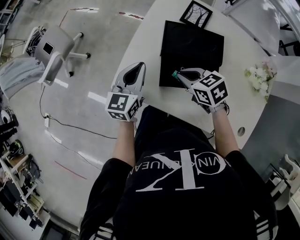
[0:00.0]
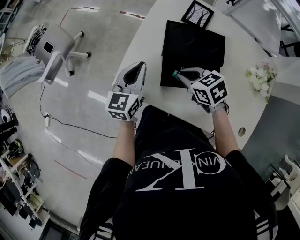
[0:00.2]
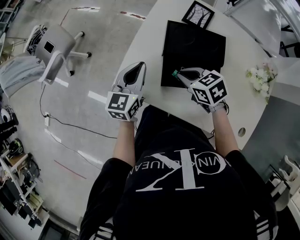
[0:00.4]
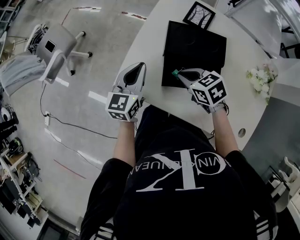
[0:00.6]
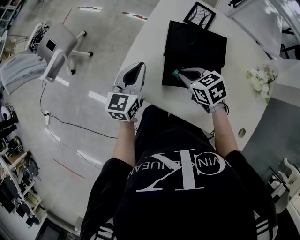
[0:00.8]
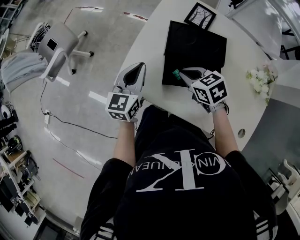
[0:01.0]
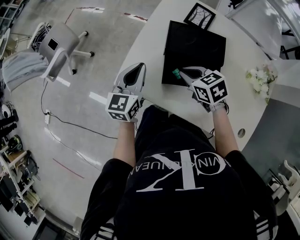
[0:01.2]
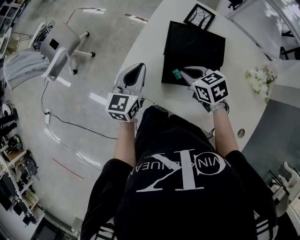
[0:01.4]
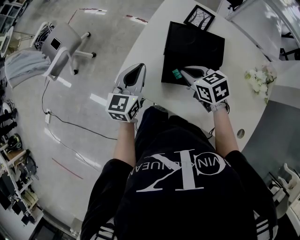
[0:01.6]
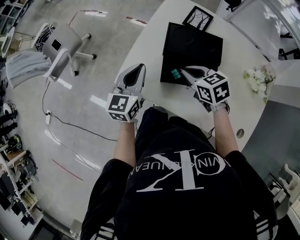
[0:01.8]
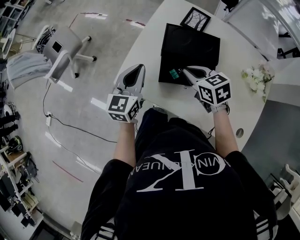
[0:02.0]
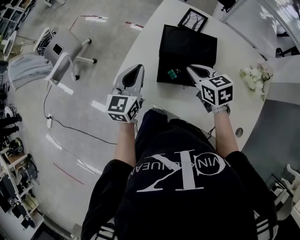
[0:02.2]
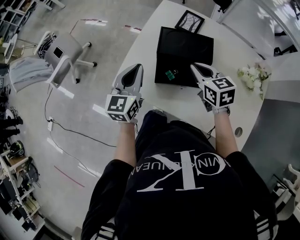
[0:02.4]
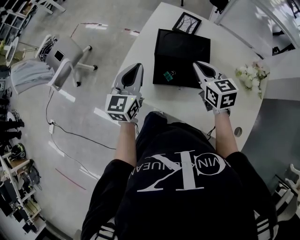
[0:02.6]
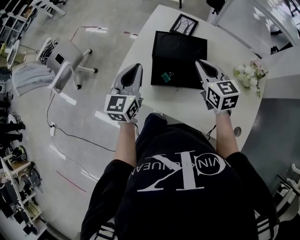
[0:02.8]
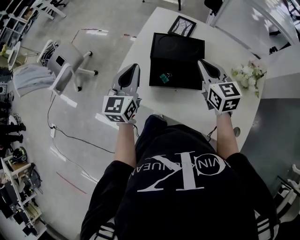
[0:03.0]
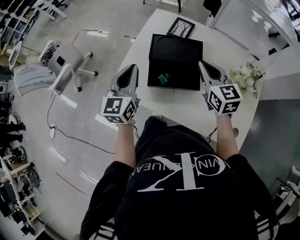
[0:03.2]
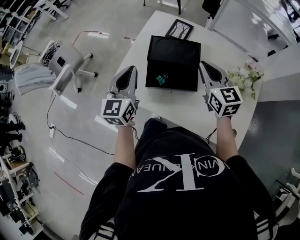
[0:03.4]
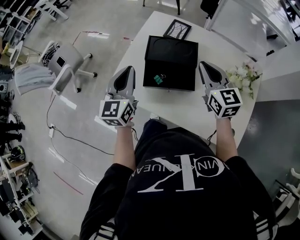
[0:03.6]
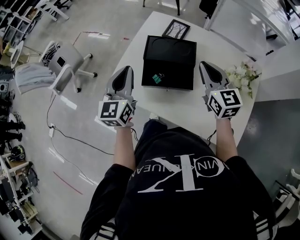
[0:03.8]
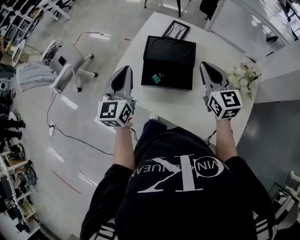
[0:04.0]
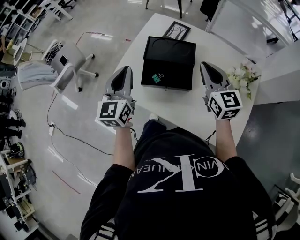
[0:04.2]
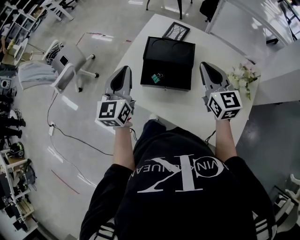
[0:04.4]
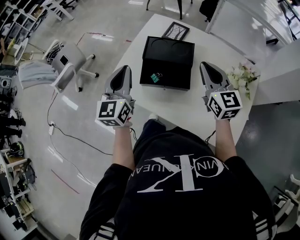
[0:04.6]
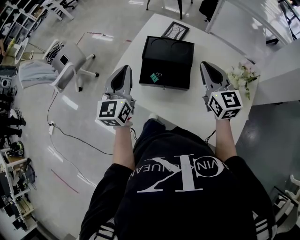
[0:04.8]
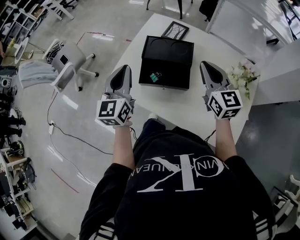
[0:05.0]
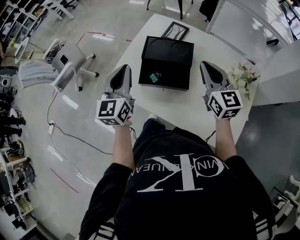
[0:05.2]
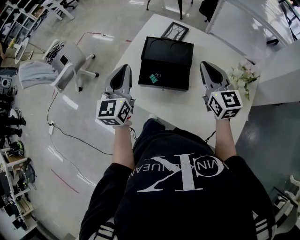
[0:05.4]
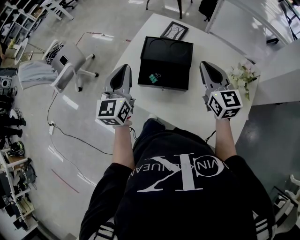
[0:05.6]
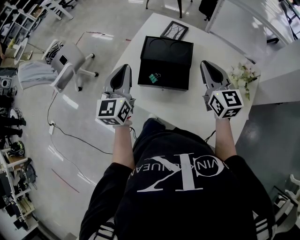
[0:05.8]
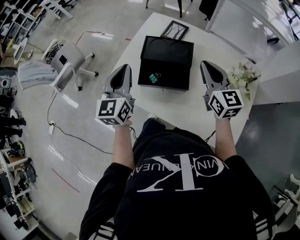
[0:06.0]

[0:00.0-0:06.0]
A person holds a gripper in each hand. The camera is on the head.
0.0 to 1.6 s: There are only small adjustments of the grippers.
1.6 to 3.0 s: The right gripper moves to the right and upward, about 15 cm, and changes its angle by approximately 40 degrees, while the left gripper travels upward by about 5 cm.
3.0 to 4.4 s: The right gripper moves upward, some 5 cm, while the left gripper moves approximately 5 cm.
4.4 to 6.0 s: The grippers stay close to where they were, moving slightly.

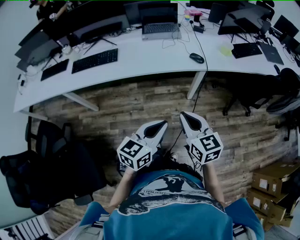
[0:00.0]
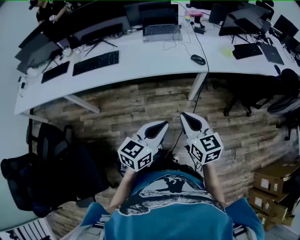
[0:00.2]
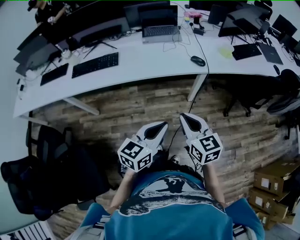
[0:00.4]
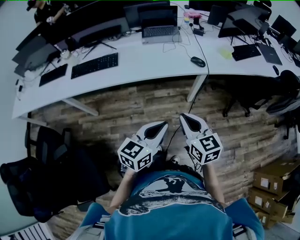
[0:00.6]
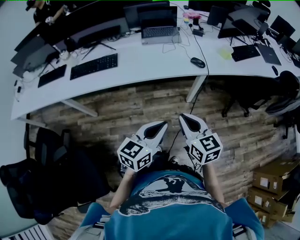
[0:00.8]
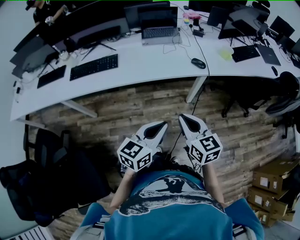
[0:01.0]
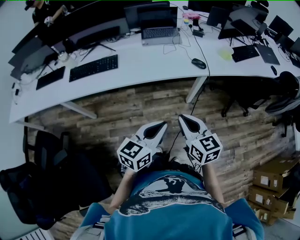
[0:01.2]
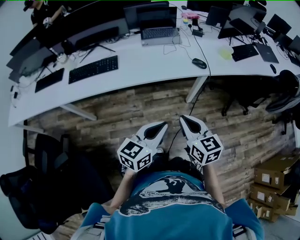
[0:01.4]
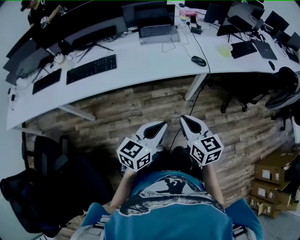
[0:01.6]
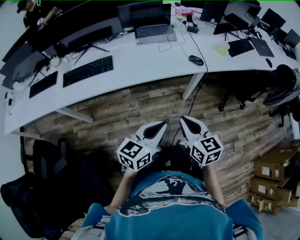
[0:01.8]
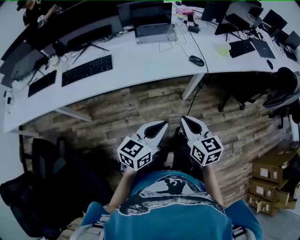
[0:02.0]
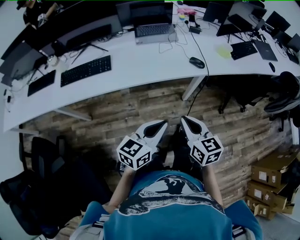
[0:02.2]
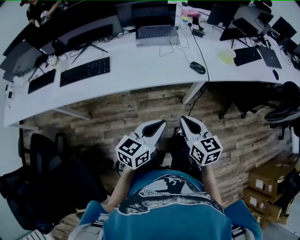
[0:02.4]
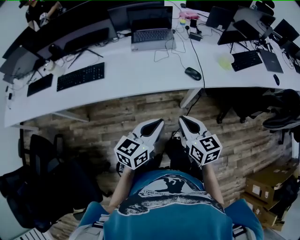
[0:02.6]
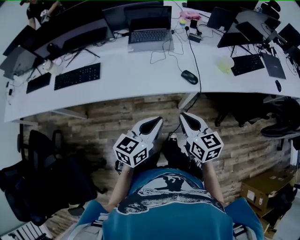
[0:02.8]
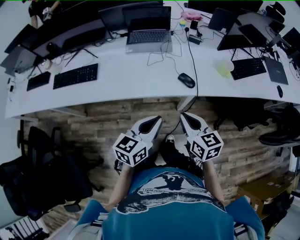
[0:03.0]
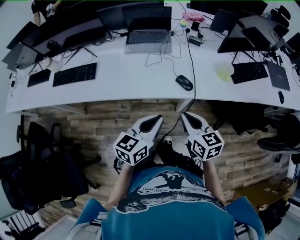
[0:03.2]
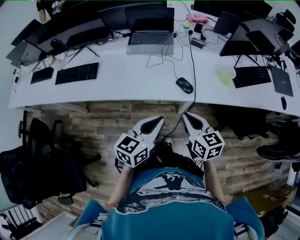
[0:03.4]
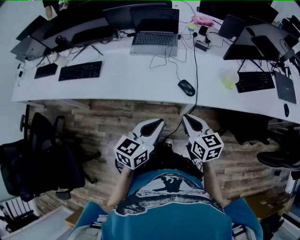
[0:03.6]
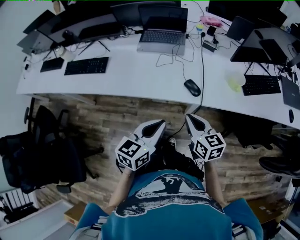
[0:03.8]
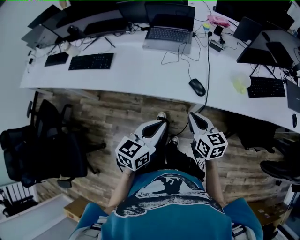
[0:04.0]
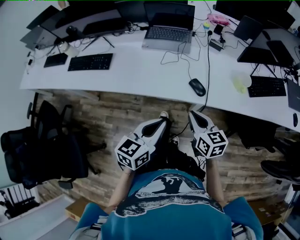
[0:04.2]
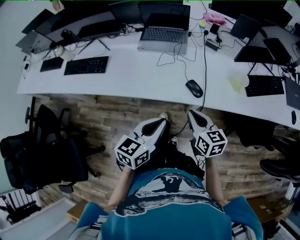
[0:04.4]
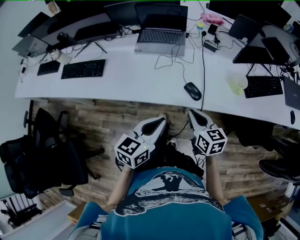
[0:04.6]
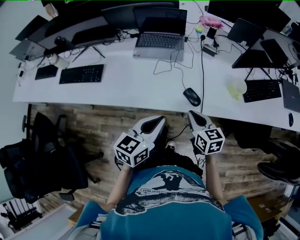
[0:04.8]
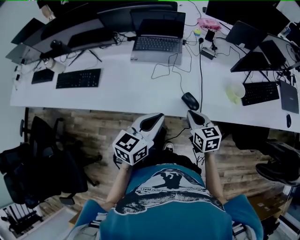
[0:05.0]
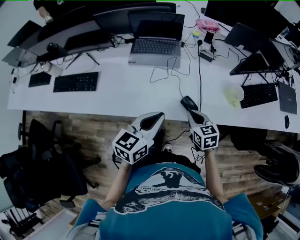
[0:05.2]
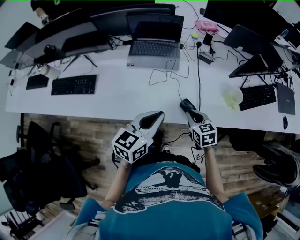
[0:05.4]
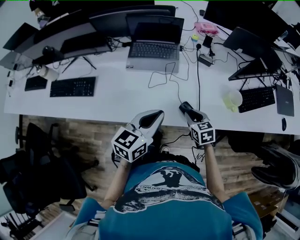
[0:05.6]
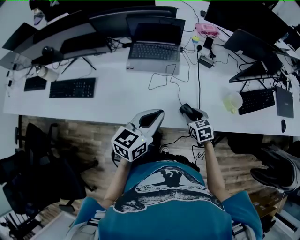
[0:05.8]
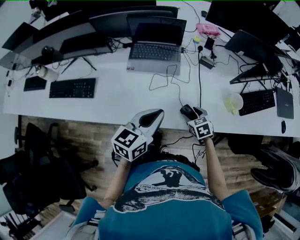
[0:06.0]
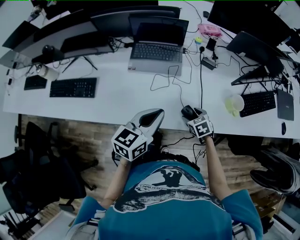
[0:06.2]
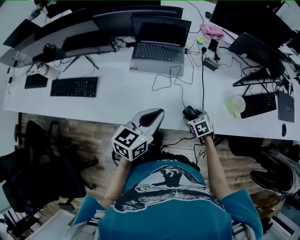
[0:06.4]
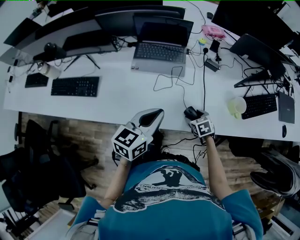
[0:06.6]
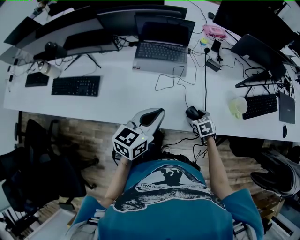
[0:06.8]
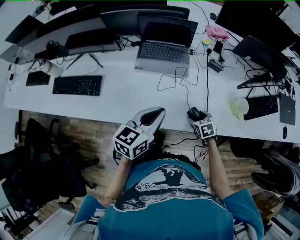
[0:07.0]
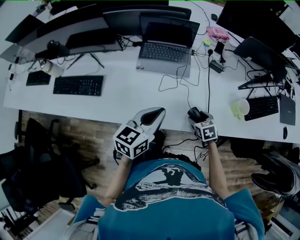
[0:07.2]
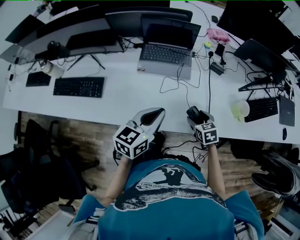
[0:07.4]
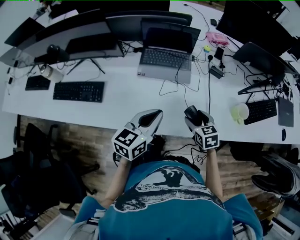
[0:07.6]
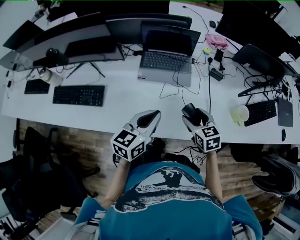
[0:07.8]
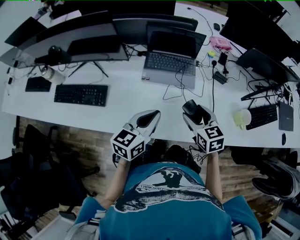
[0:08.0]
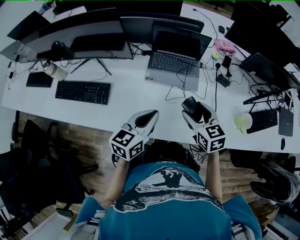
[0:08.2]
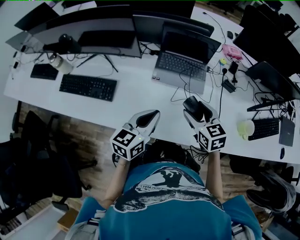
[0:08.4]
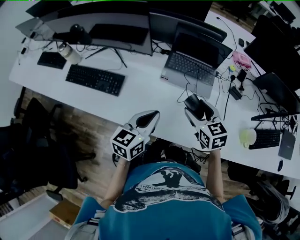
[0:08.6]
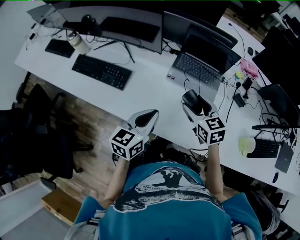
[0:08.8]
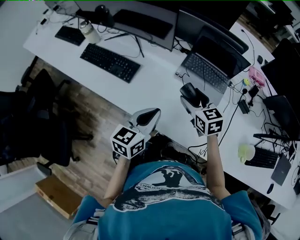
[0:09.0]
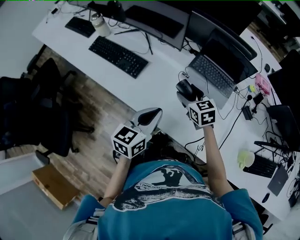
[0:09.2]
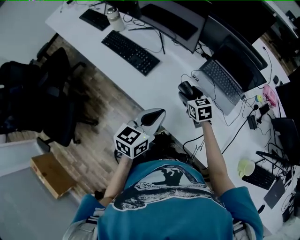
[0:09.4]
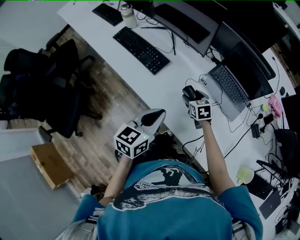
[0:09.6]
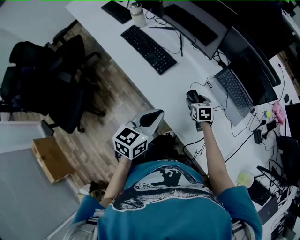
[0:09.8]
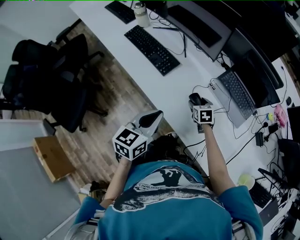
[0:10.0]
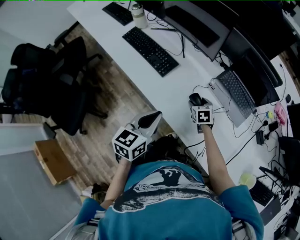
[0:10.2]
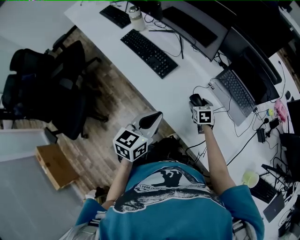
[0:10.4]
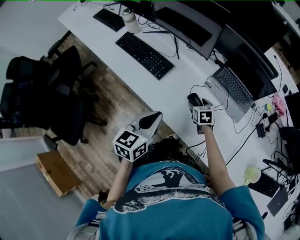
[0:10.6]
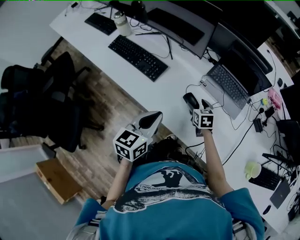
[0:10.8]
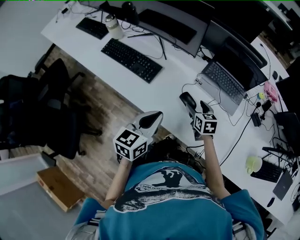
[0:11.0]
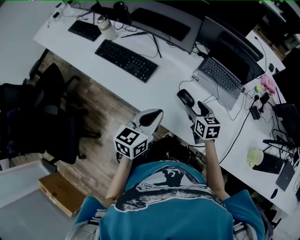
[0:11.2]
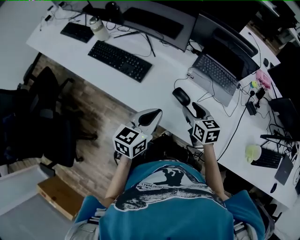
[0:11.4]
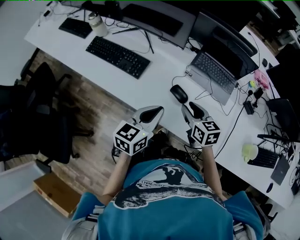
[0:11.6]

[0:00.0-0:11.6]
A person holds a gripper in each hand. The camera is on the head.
0.0 to 1.4 s: Both grippers travel together to the left, approximately 5 cm.
1.4 to 2.8 s: Both grippers move forward and to the right, some 20 cm.
2.8 to 4.4 s: The right gripper goes some 15 cm forward, to the right and downward; the left gripper travels to the right and forward by approximately 10 cm.
4.4 to 5.8 s: The left gripper goes about 15 cm forward. Meanwhile the right gripper goes about 20 cm forward and downward, turns by roughly 30 degrees, and opens.
5.8 to 7.2 s: The left gripper changes place by roughly 5 cm. Meanwhile the right gripper opens.
7.2 to 8.8 s: The right gripper shifts some 30 cm to the left, upward and forward, and swivels roughly 30 degrees; the left gripper is displaced to the left by some 15 cm, and changes its angle by roughly 20 degrees.
8.8 to 10.2 s: The right gripper moves downward and to the left, about 20 cm, and rotates approximately 20 degrees. The left gripper heads to the left, covering some 10 cm, and turns by some 20 degrees.
10.2 to 11.6 s: The right gripper moves upward and backward, roughly 20 cm, turns by roughly 30 degrees, and closes up. Meanwhile the left gripper changes place by roughly 5 cm, and turns by about 20 degrees.

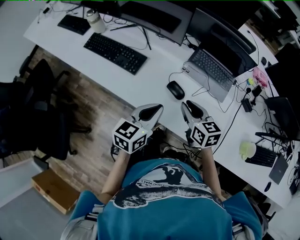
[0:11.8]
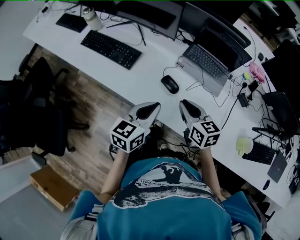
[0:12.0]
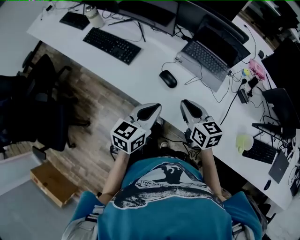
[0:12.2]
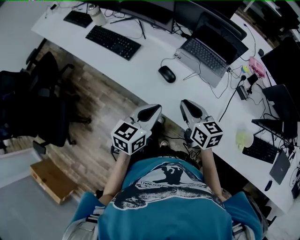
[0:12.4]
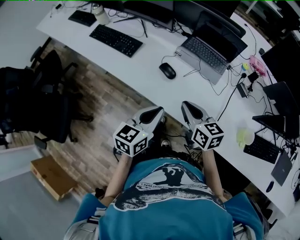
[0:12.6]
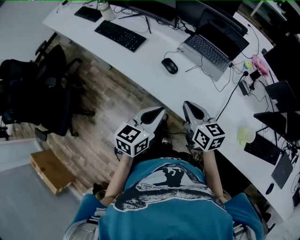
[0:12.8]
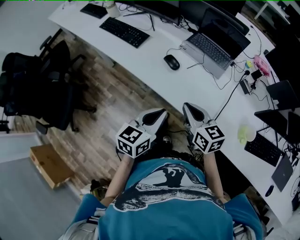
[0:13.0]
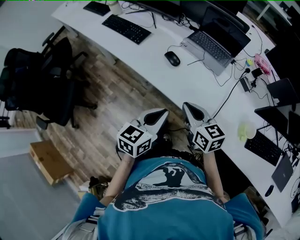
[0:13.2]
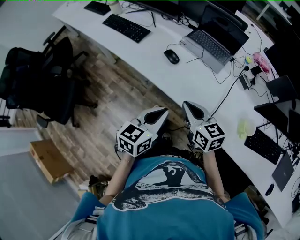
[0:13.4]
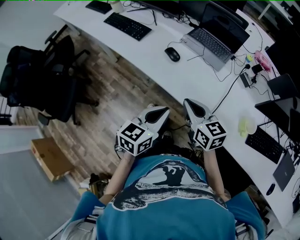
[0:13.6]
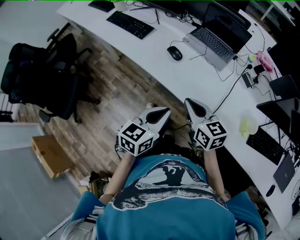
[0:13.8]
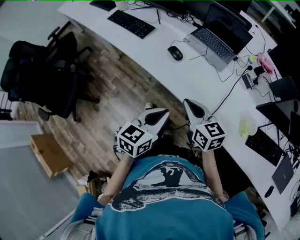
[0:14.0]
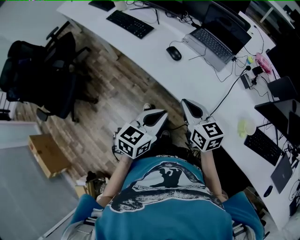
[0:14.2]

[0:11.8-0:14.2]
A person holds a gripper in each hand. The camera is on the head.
11.8 to 13.0 s: Both grippers move backward and to the right, roughly 20 cm.
13.0 to 14.2 s: The left gripper travels backward by approximately 5 cm.

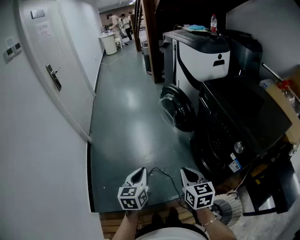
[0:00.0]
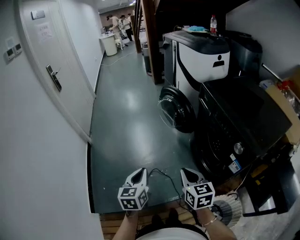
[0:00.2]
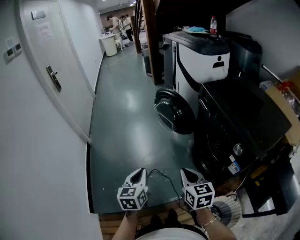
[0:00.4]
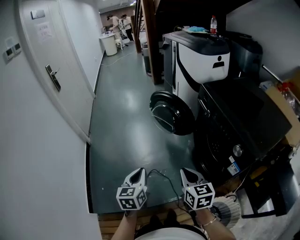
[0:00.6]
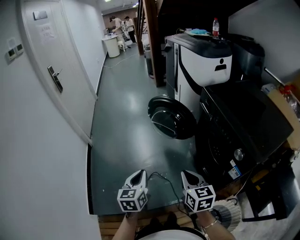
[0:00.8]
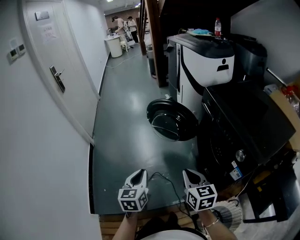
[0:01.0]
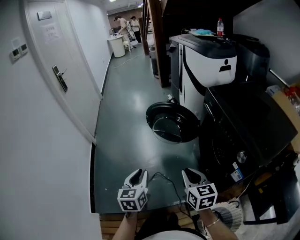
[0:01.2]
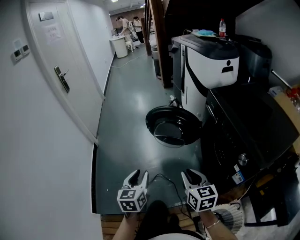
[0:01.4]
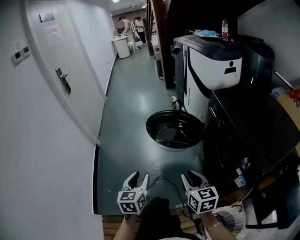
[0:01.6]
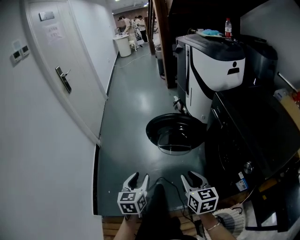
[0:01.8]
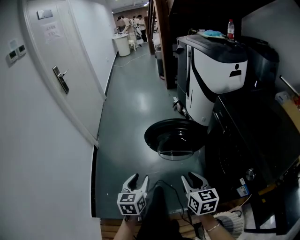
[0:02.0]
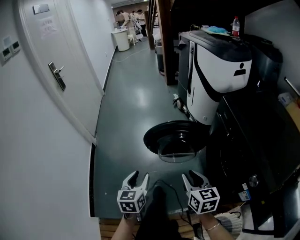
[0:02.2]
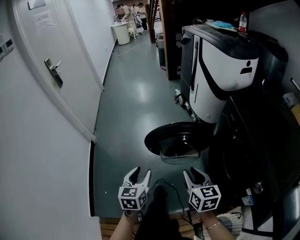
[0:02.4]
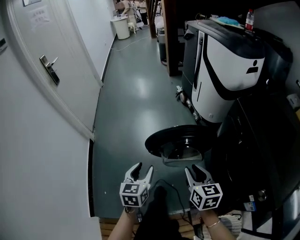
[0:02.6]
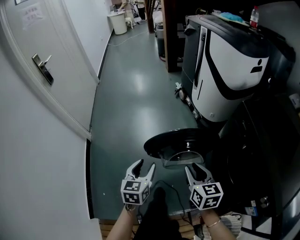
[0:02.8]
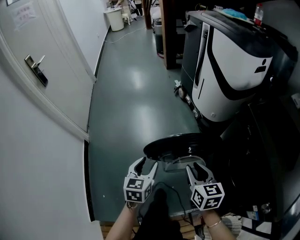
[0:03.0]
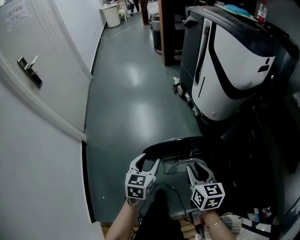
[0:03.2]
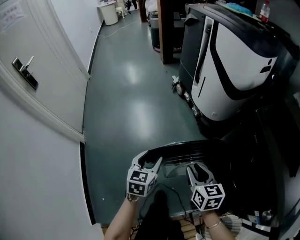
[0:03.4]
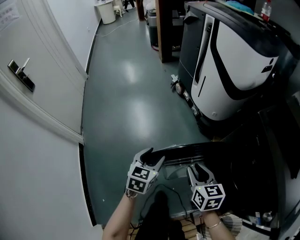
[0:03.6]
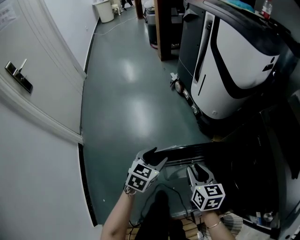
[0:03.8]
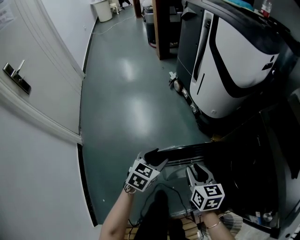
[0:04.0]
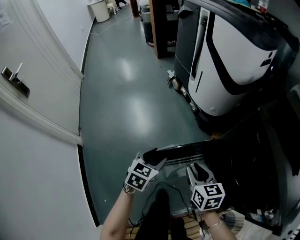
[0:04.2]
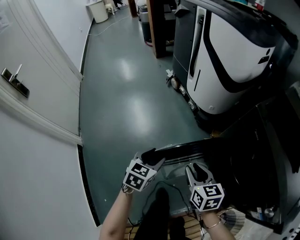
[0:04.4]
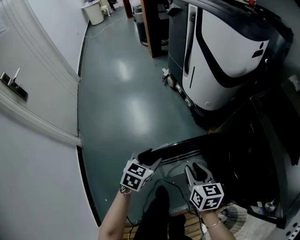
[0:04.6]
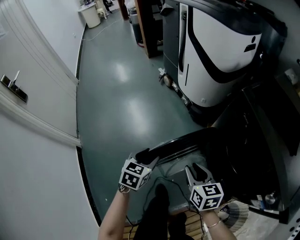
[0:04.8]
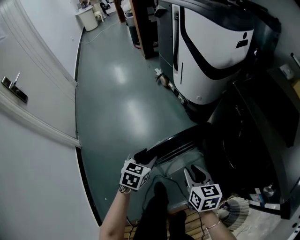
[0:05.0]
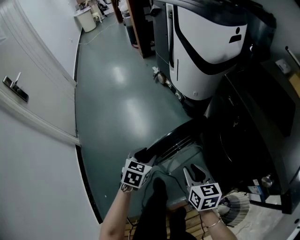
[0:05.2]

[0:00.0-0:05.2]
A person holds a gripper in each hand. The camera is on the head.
0.0 to 1.8 s: Both grippers move forward, roughly 5 cm. The right gripper opens. Meanwhile the left gripper opens.
1.8 to 3.4 s: The grippers both shift forward by roughly 40 cm. The left gripper swivels about 20 degrees.
3.4 to 5.2 s: The left gripper heads to the right and backward, covering approximately 15 cm, and rotates some 20 degrees. The right gripper shifts some 15 cm backward and to the right.
